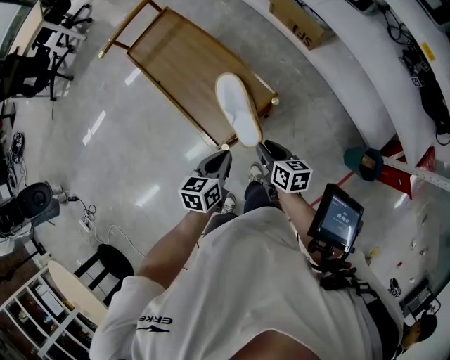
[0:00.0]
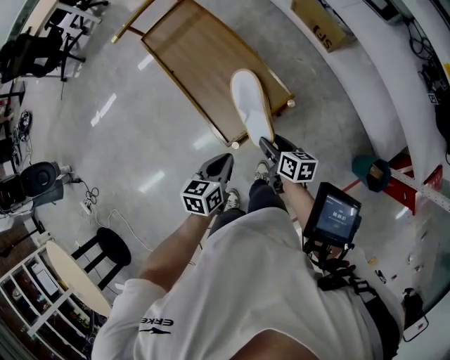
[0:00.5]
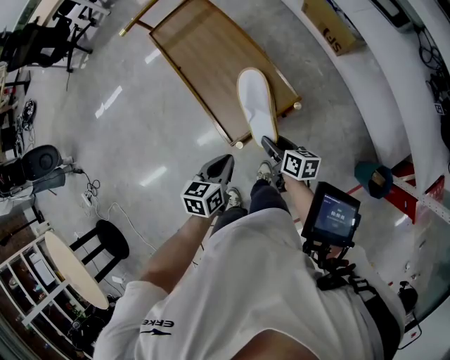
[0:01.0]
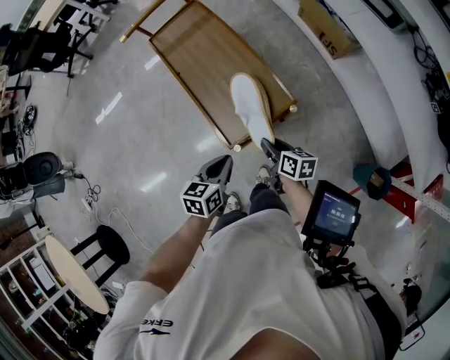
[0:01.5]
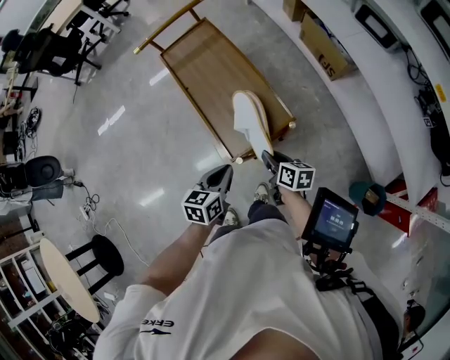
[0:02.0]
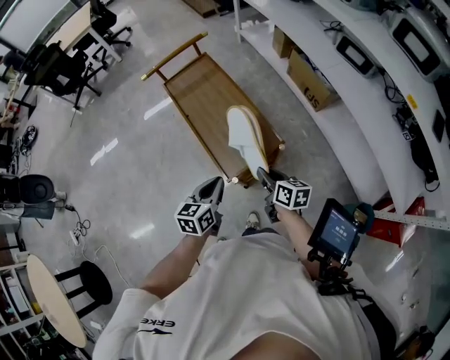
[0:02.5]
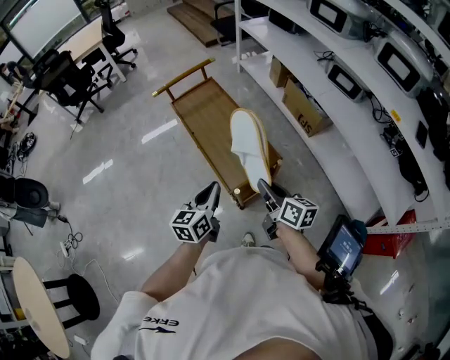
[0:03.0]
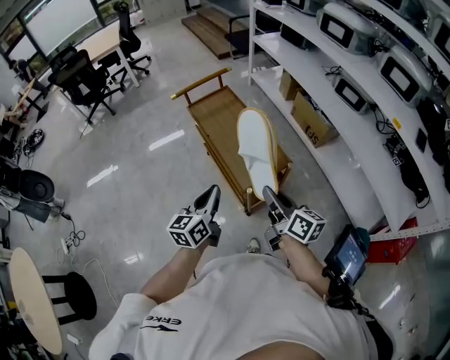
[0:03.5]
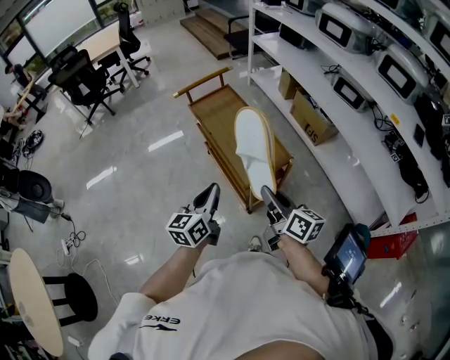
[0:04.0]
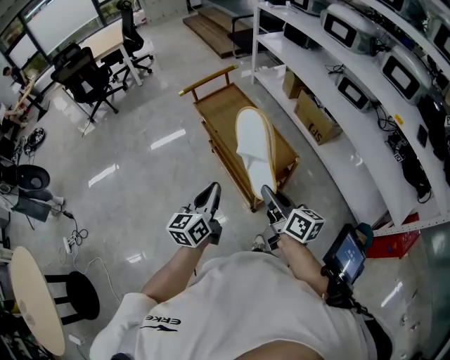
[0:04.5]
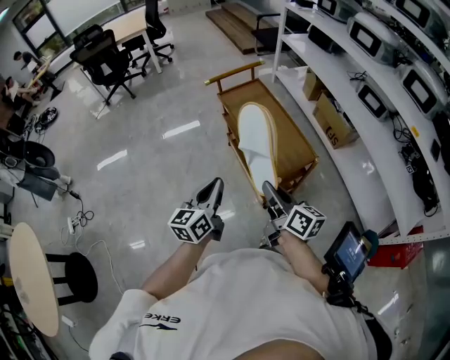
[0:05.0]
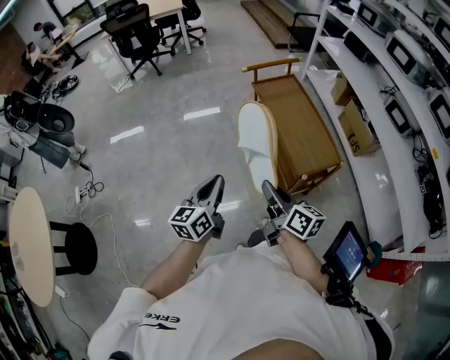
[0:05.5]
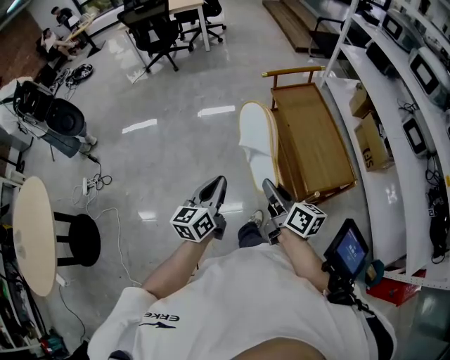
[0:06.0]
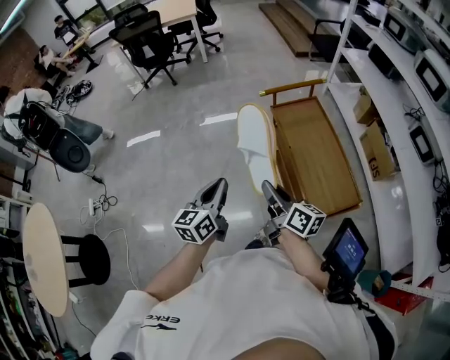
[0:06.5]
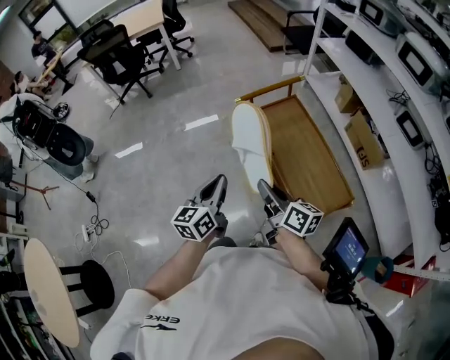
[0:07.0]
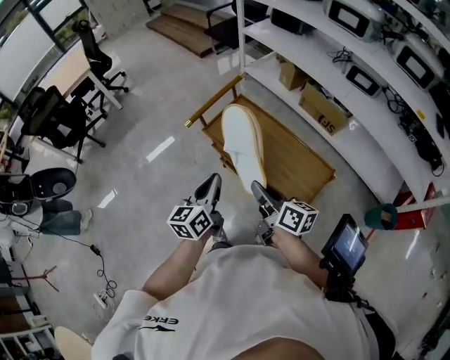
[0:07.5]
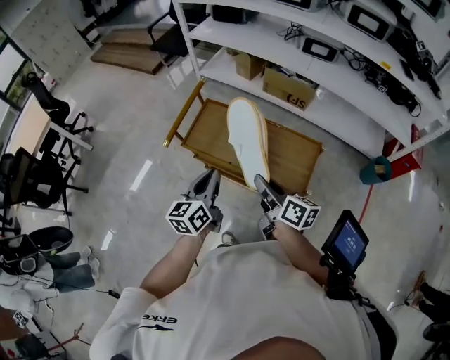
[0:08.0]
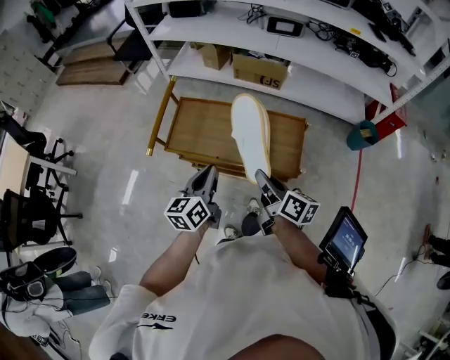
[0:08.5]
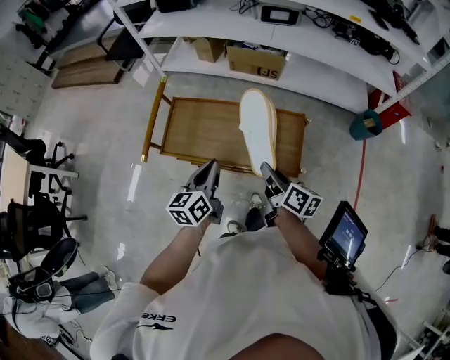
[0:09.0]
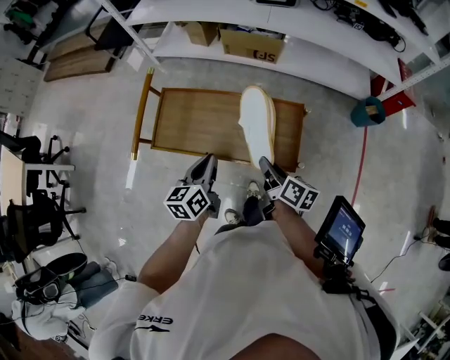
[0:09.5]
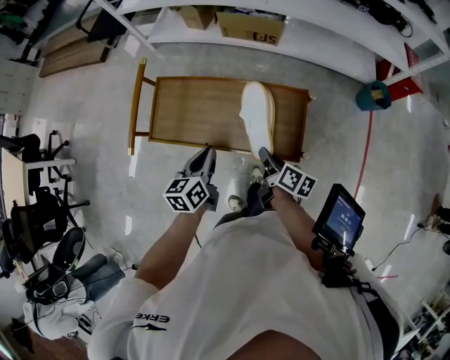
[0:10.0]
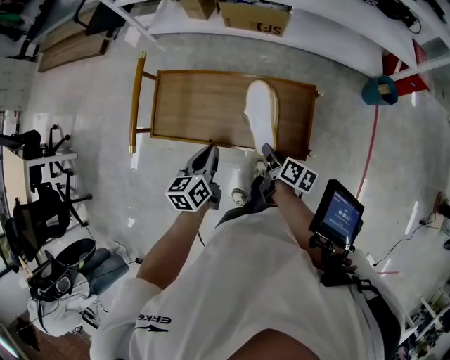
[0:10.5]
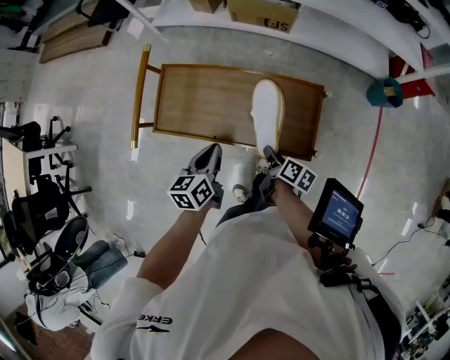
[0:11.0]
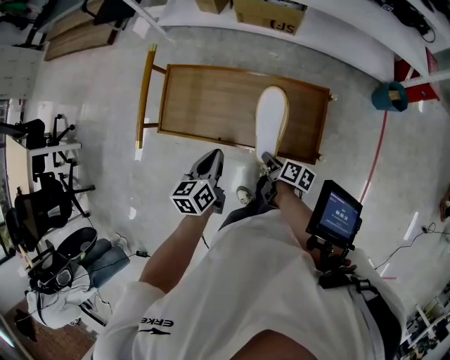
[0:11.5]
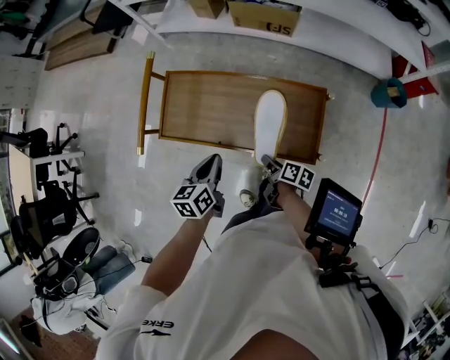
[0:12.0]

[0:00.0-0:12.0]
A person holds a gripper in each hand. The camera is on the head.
0.0 to 2.0 s: The right gripper opens and closes again.
2.0 to 4.0 s: The left gripper shifts roughly 20 cm upward and to the left, and turns by some 30 degrees. The right gripper goes approximately 30 cm upward and backward, and changes its angle by approximately 30 degrees.
4.0 to 6.0 s: The two grippers go approximately 25 cm to the left.
6.0 to 8.0 s: The left gripper ends up about 40 cm from where it was, and turns by some 50 degrees; the right gripper ends up some 25 cm from where it was, and turns by some 50 degrees.
8.0 to 10.0 s: The left gripper is displaced downward, forward and to the right by some 15 cm, and swivels roughly 20 degrees, while the right gripper shifts about 20 cm downward, to the right and forward, and swivels about 30 degrees.
10.0 to 12.0 s: The left gripper ends up roughly 5 cm from where it was. Meanwhile the right gripper is displaced downward by about 10 cm.

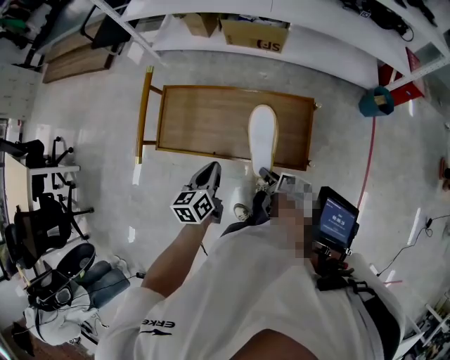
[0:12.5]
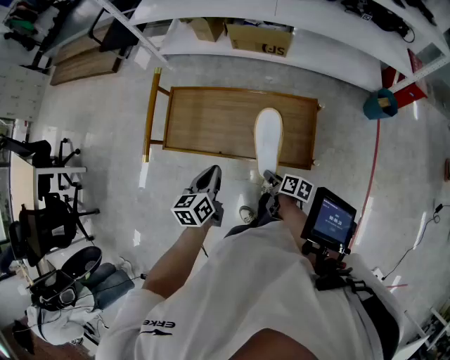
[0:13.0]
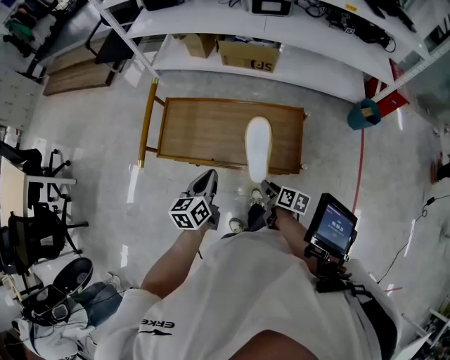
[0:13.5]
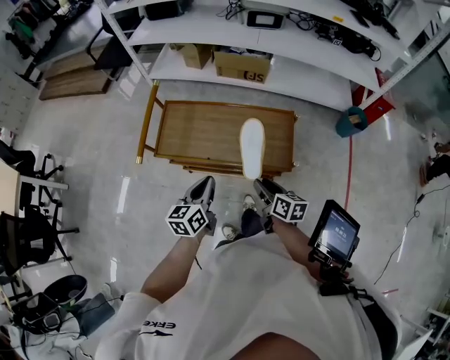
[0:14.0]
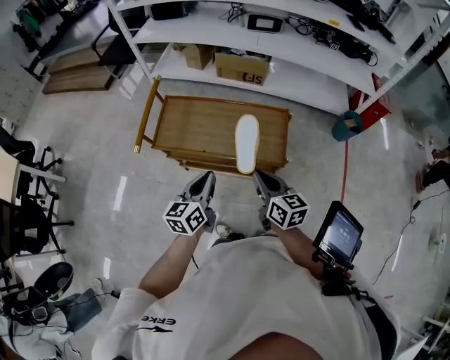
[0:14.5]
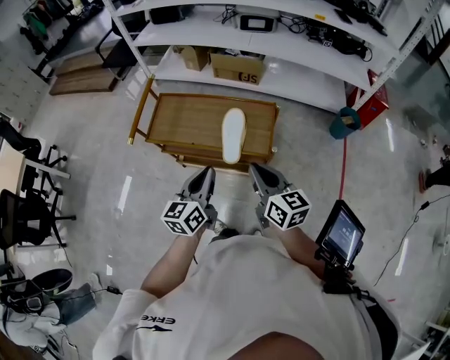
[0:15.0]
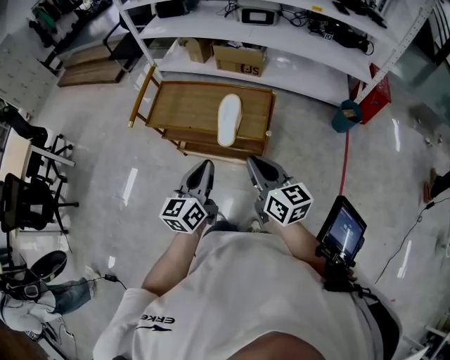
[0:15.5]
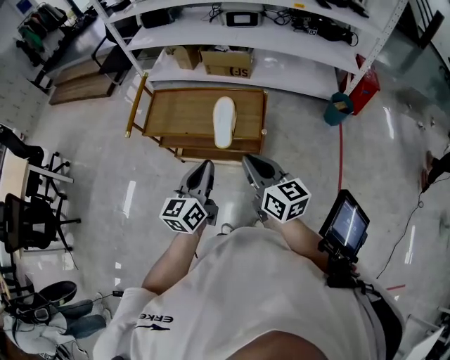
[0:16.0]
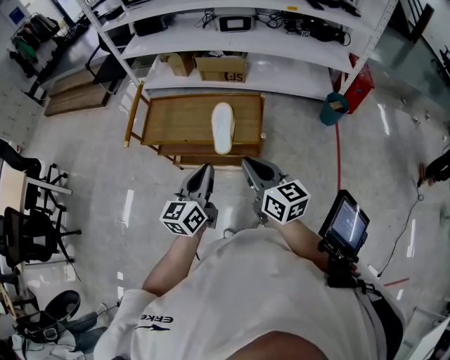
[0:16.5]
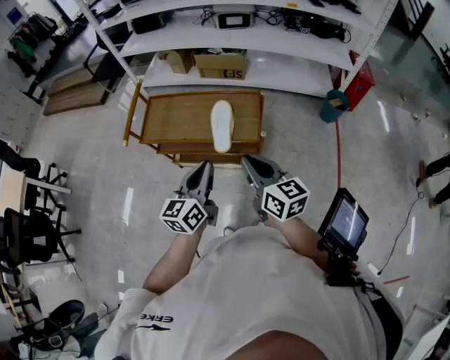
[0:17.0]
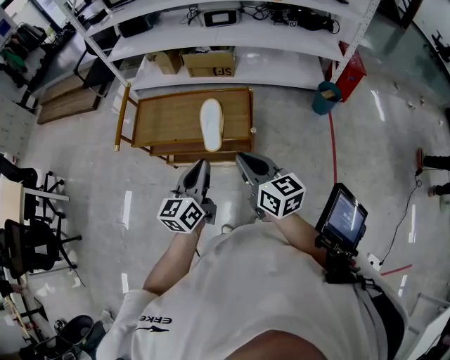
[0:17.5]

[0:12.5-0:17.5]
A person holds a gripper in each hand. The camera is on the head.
12.5 to 15.0 s: The left gripper is displaced backward, upward and to the right by approximately 25 cm, and turns by roughly 20 degrees. Meanwhile the right gripper moves upward and backward, about 35 cm, rotates around the line of its fingers by approximately 50 degrees, counterclockwise from behind, and closes.
15.0 to 17.5 s: Both grippers move backward, some 5 cm.

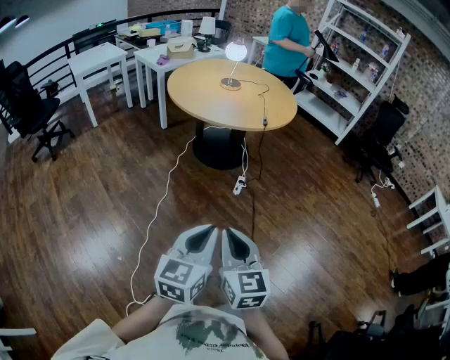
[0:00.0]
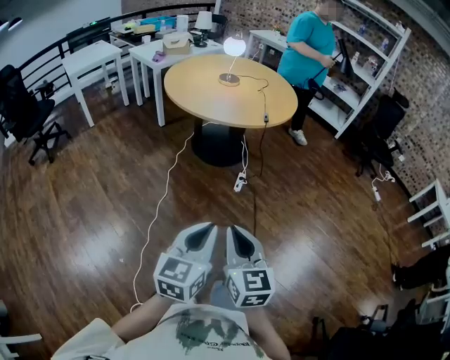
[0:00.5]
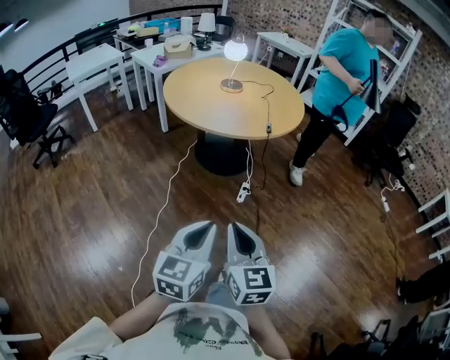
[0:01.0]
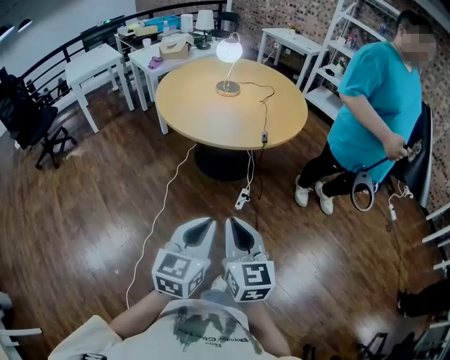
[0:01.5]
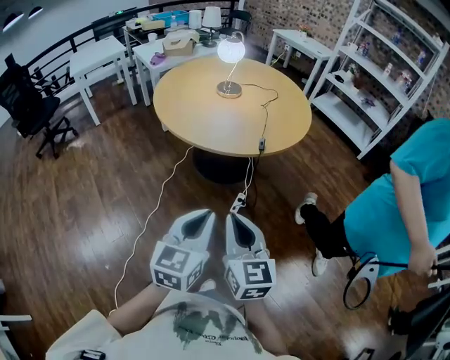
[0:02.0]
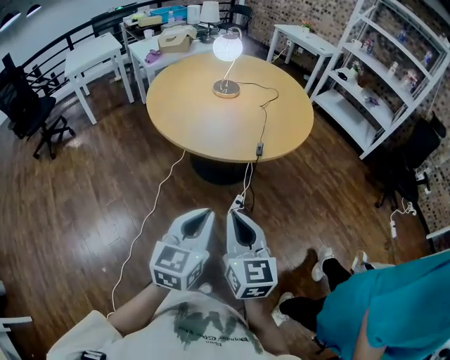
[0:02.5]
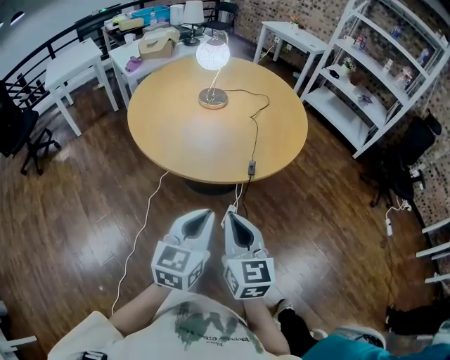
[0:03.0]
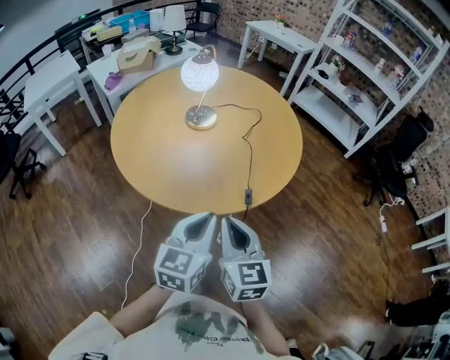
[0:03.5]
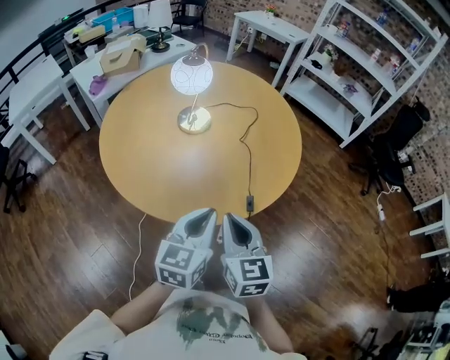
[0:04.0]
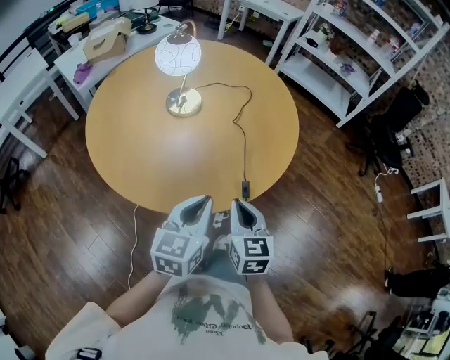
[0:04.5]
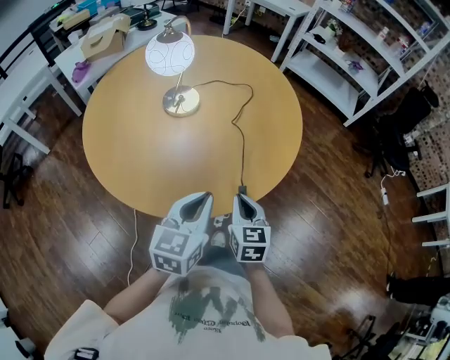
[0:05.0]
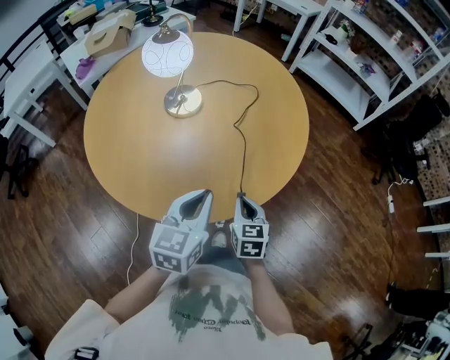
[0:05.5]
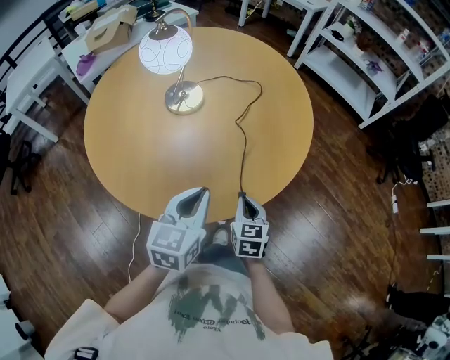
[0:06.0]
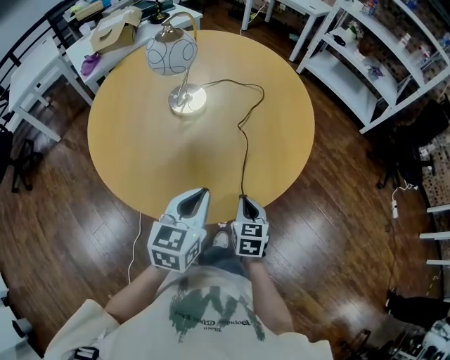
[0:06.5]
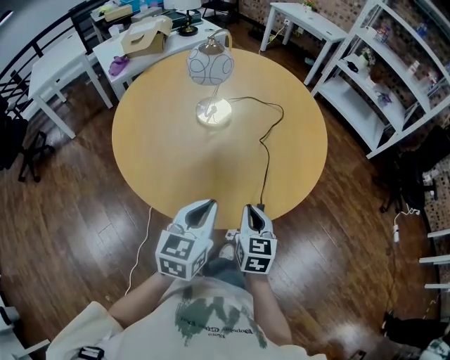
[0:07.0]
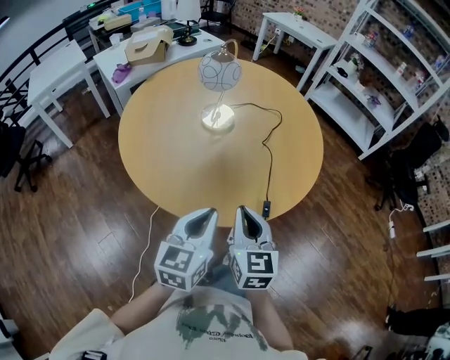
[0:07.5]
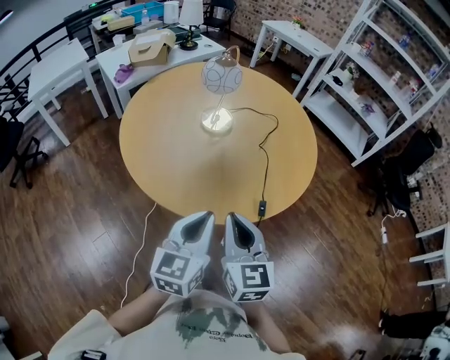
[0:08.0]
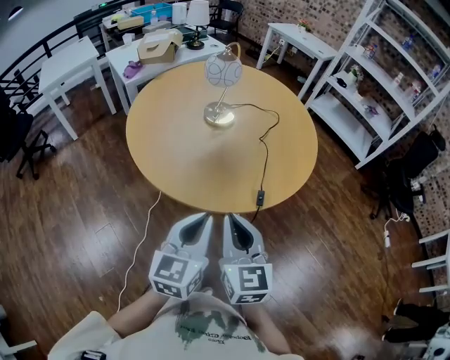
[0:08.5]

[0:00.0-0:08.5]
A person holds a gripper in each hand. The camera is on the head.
0.0 to 2.0 s: The right gripper shifts some 35 cm forward and to the right; the left gripper is displaced forward by approximately 30 cm.
2.0 to 4.0 s: The grippers both shift forward by about 35 cm.
4.0 to 6.5 s: The left gripper shifts roughly 10 cm forward and downward; the right gripper moves downward, forward and to the right, approximately 25 cm, and turns by about 20 degrees.
6.5 to 8.5 s: The left gripper shifts about 20 cm backward and upward. The right gripper shifts about 35 cm upward, backward and to the left, and changes its angle by about 30 degrees.

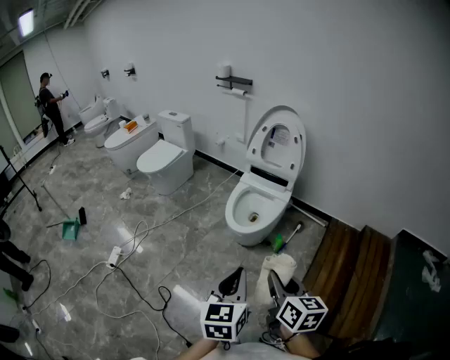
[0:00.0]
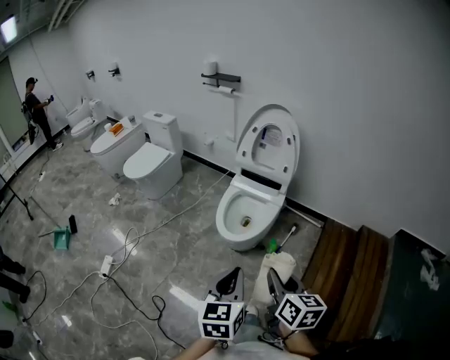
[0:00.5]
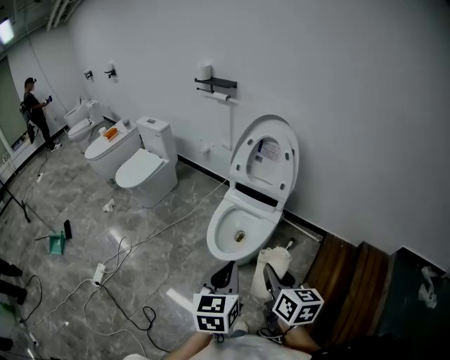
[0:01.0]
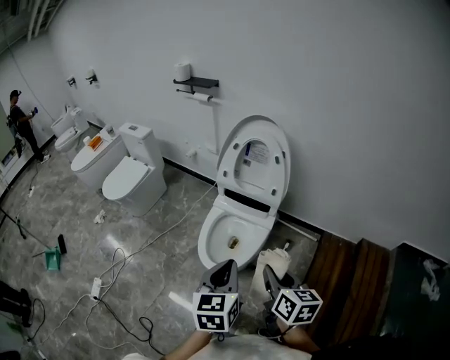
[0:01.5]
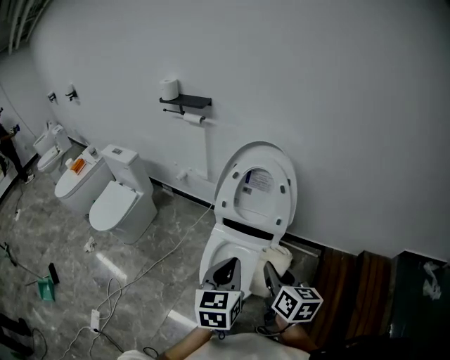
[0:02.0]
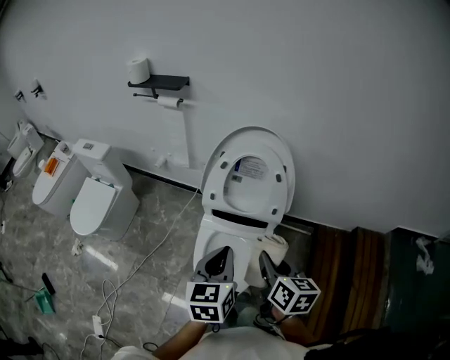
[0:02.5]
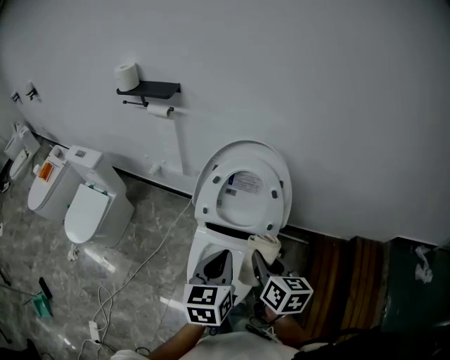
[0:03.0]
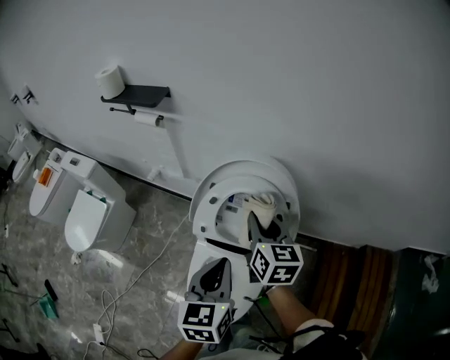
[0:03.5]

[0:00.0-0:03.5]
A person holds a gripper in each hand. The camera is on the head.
0.0 to 2.0 s: The two grippers travel together, forward, some 50 cm.
2.0 to 3.5 s: The left gripper is displaced forward by approximately 25 cm, while the right gripper is displaced forward by some 35 cm.
